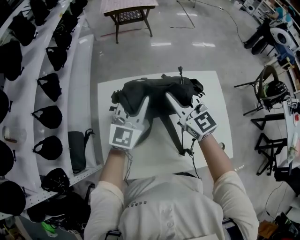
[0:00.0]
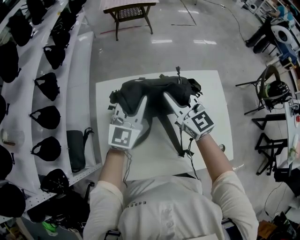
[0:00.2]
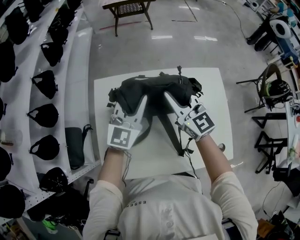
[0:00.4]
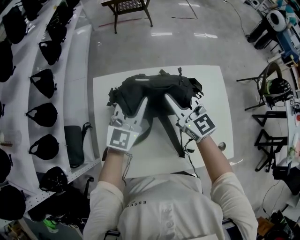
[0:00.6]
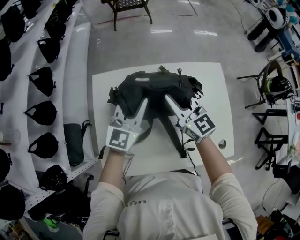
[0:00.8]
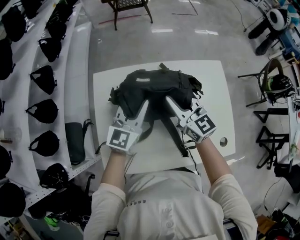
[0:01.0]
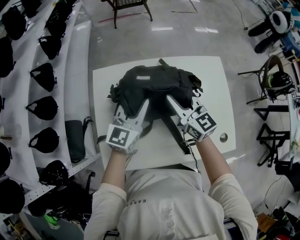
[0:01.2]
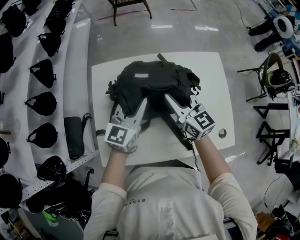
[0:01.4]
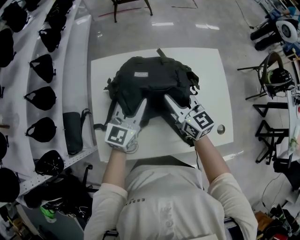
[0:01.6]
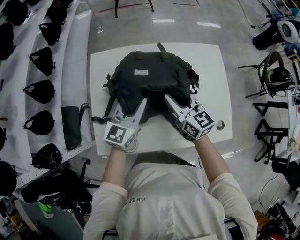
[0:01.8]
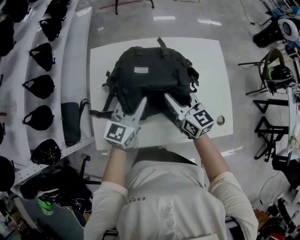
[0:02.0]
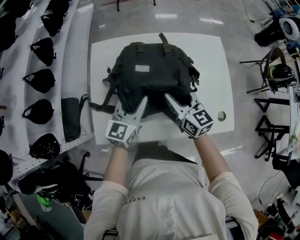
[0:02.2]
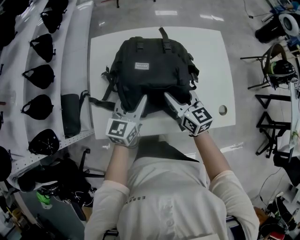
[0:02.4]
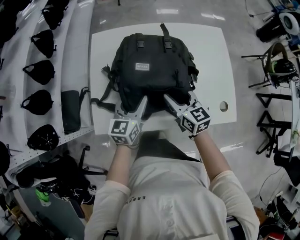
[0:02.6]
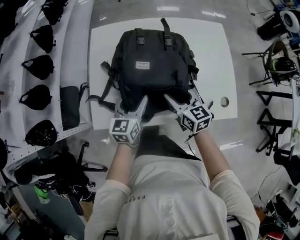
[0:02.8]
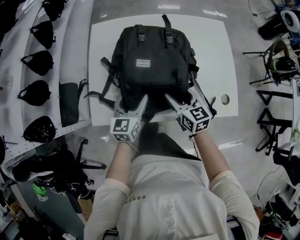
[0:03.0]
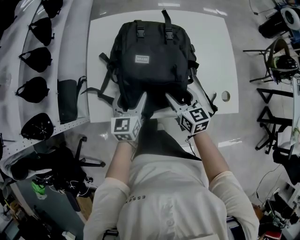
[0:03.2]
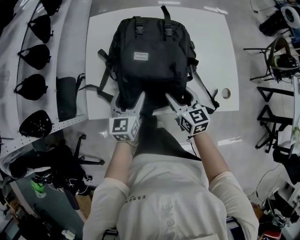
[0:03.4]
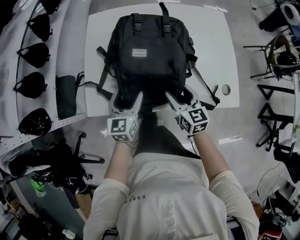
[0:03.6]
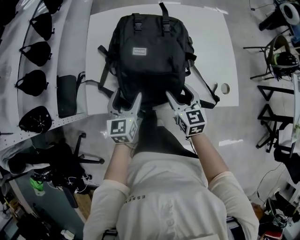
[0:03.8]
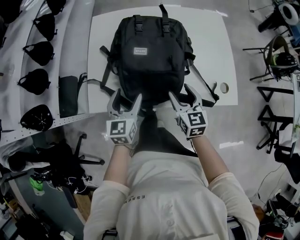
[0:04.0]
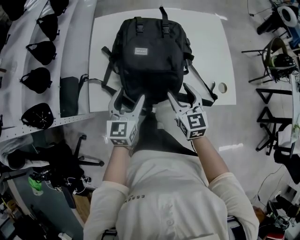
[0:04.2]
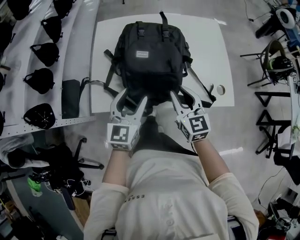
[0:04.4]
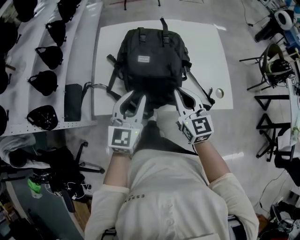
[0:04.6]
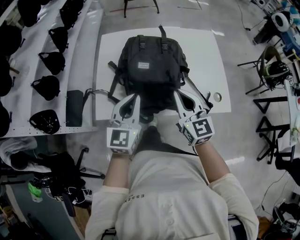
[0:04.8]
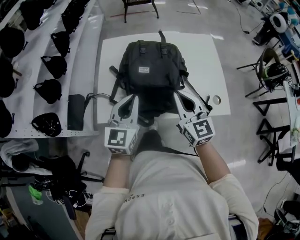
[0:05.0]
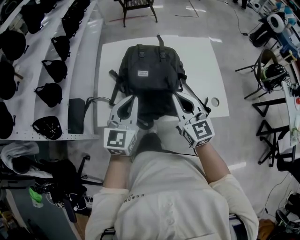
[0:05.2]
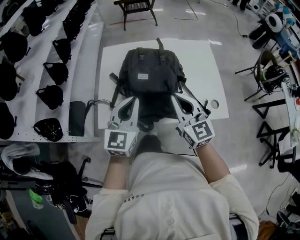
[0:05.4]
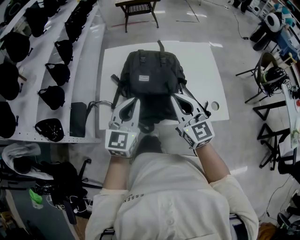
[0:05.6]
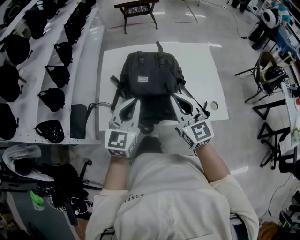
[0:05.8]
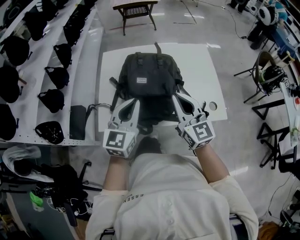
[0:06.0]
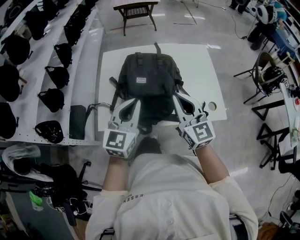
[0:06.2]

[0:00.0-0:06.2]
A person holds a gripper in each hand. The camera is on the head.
0:00.0 to 0:01.6: The grippers both shift downward and backward by approximately 10 cm.
0:01.6 to 0:03.2: Both grippers travel together backward and downward, about 20 cm. The right gripper opens its fingers. The left gripper changes its angle by some 20 degrees, and opens its fingers.
0:03.2 to 0:04.6: The two grippers go approximately 15 cm upward and backward. The left gripper closes up; the right gripper closes up.
0:04.6 to 0:06.2: Both grippers travel together upward, some 10 cm. The left gripper closes its fingers.

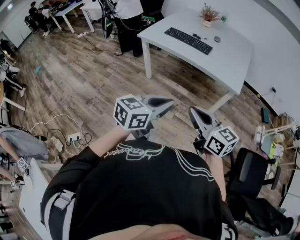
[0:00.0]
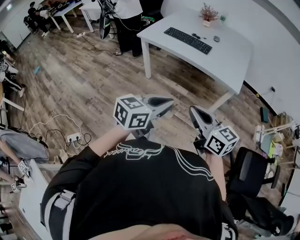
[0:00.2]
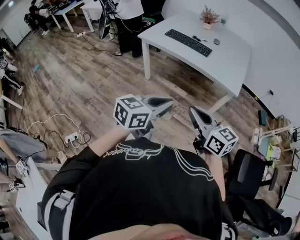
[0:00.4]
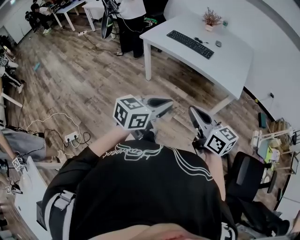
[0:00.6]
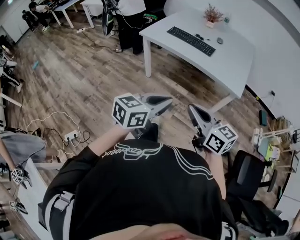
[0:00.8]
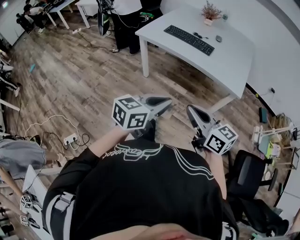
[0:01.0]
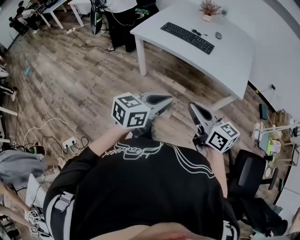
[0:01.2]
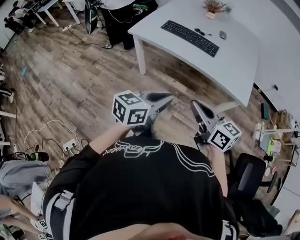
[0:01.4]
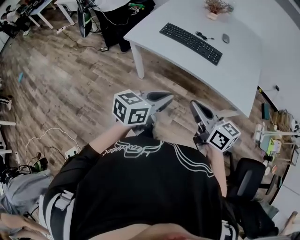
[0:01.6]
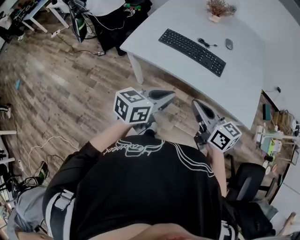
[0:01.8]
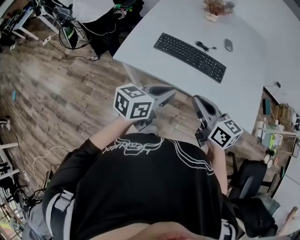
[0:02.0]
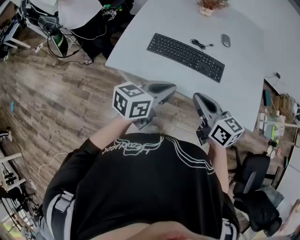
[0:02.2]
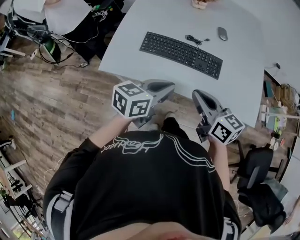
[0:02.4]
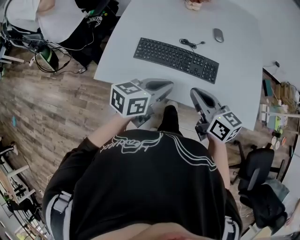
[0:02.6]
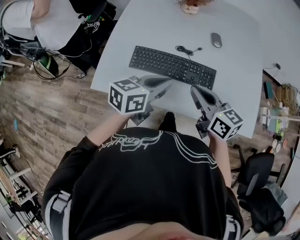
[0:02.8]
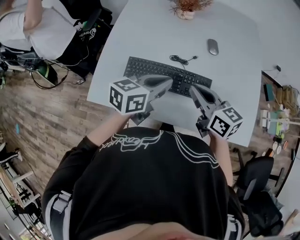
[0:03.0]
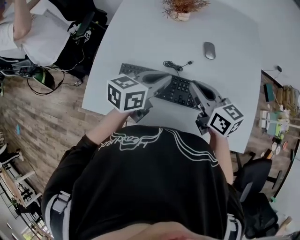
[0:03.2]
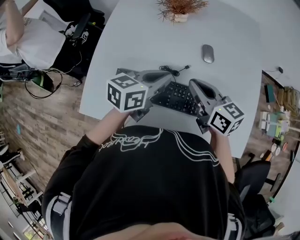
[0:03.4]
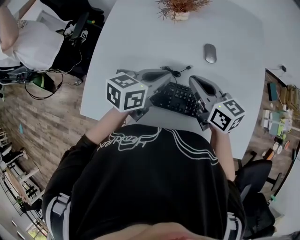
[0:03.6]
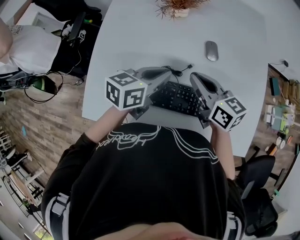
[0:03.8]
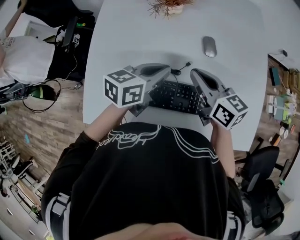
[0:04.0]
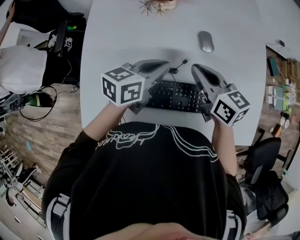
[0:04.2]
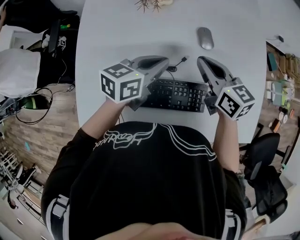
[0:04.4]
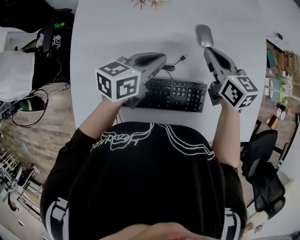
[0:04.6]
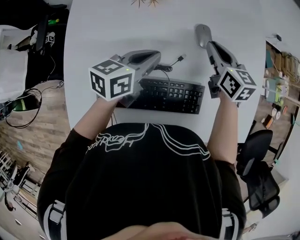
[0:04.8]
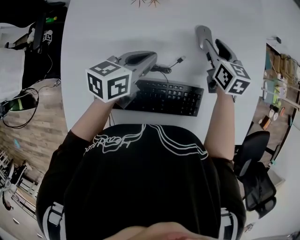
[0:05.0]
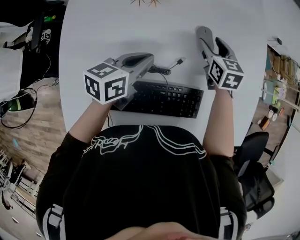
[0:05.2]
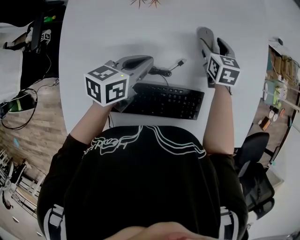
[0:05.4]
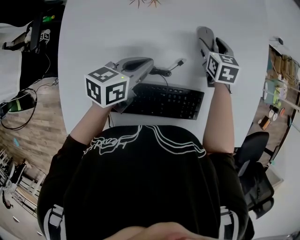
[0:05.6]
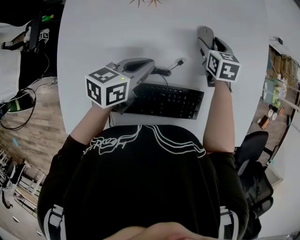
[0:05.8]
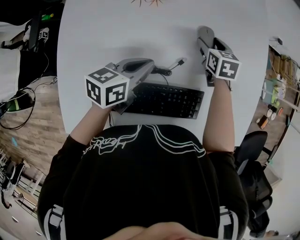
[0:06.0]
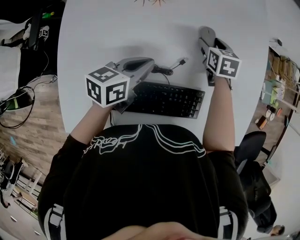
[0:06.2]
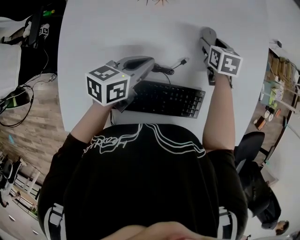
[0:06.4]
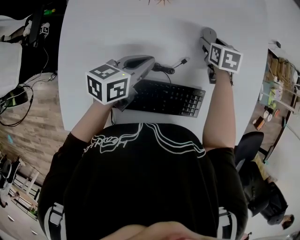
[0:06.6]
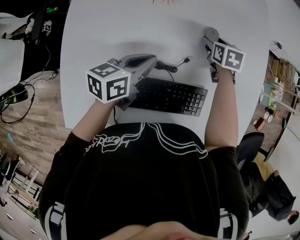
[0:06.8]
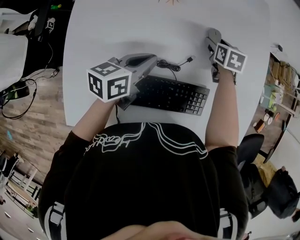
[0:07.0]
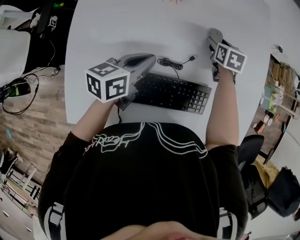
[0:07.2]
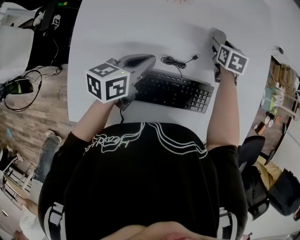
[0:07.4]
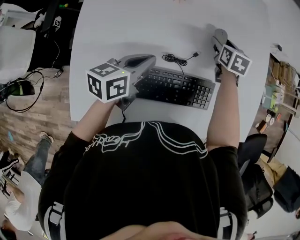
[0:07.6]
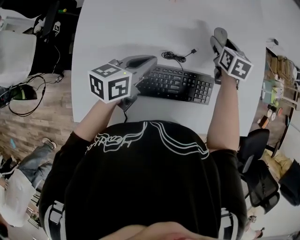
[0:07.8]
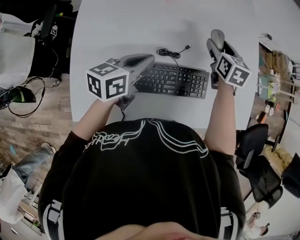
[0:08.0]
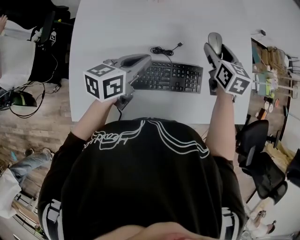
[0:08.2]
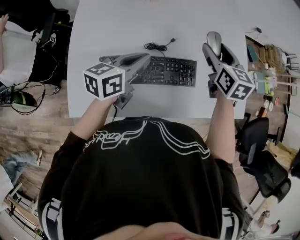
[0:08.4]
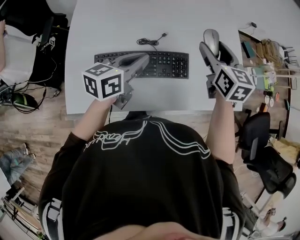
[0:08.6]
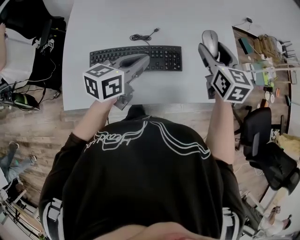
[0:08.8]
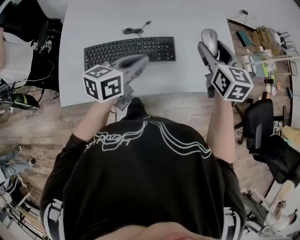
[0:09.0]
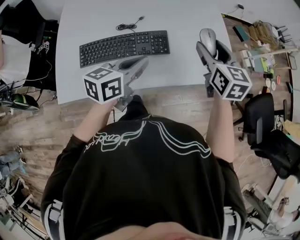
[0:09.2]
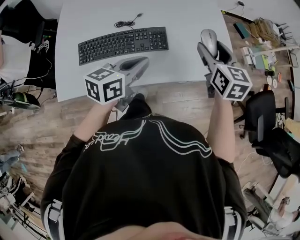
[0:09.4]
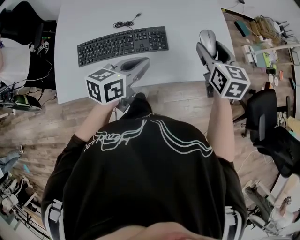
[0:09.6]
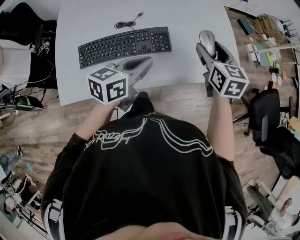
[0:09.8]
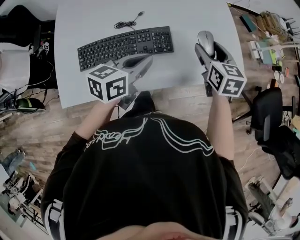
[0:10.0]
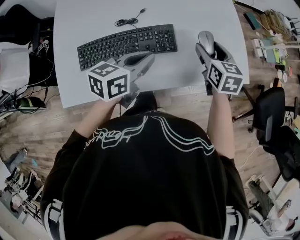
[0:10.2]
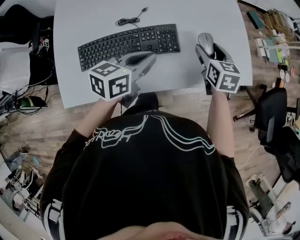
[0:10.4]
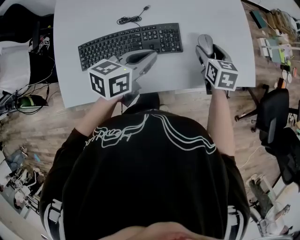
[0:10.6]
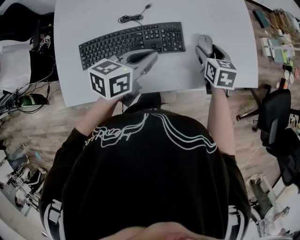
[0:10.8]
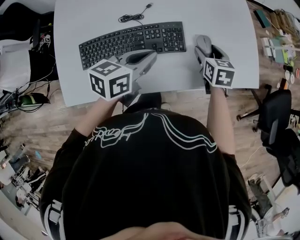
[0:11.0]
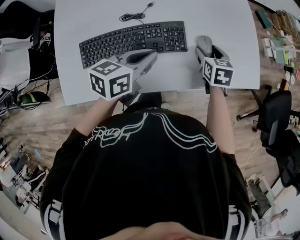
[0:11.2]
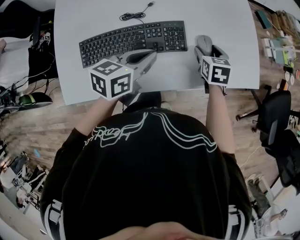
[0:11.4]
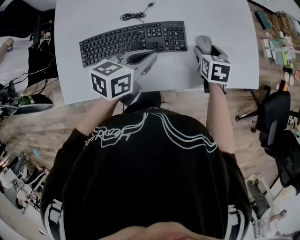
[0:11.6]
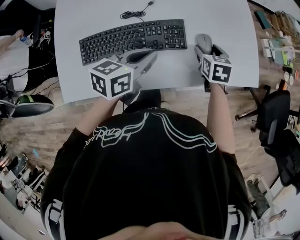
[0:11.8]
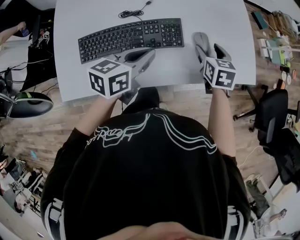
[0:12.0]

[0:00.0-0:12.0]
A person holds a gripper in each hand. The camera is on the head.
0:00.0 to 0:01.6: The two grippers go some 30 cm forward.
0:01.6 to 0:03.0: Both grippers are carried forward, approximately 40 cm.
0:03.0 to 0:04.4: Both grippers move forward, some 20 cm.
0:04.4 to 0:06.0: The right gripper heads downward and forward, covering roughly 20 cm, rotates about 30 degrees, and opens up; the left gripper travels downward by some 5 cm.
0:06.0 to 0:07.6: The left gripper travels backward by roughly 5 cm.
0:07.6 to 0:09.0: The left gripper heads to the right, backward and upward, covering some 25 cm, while the right gripper goes some 35 cm backward, to the right and upward, and turns by some 20 degrees.
0:09.0 to 0:10.4: The left gripper moves downward, about 5 cm. The right gripper is displaced downward by about 15 cm.

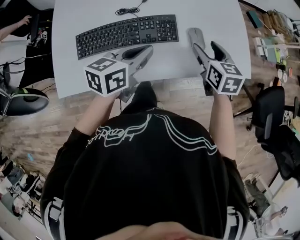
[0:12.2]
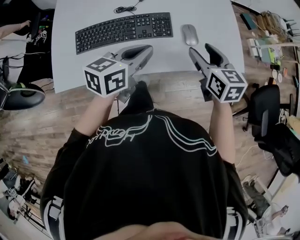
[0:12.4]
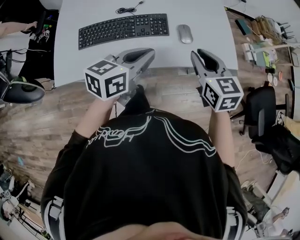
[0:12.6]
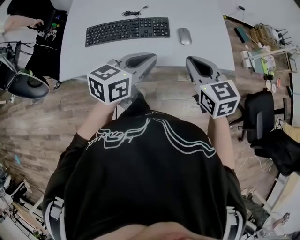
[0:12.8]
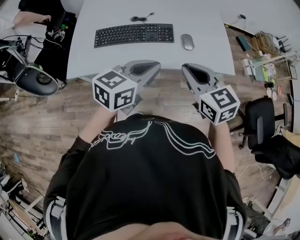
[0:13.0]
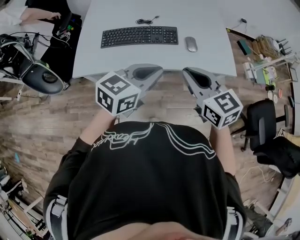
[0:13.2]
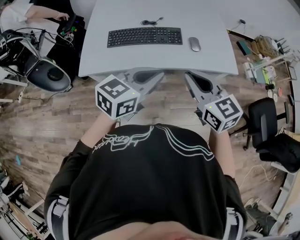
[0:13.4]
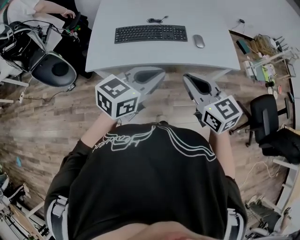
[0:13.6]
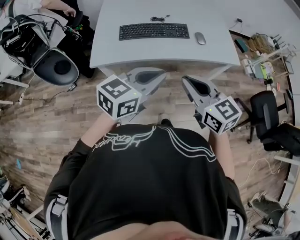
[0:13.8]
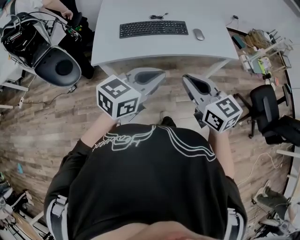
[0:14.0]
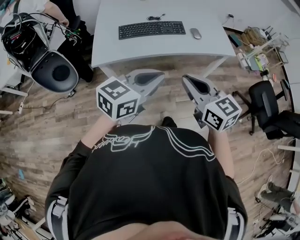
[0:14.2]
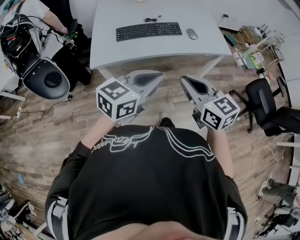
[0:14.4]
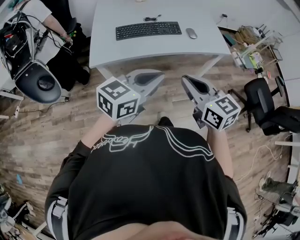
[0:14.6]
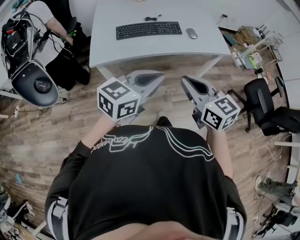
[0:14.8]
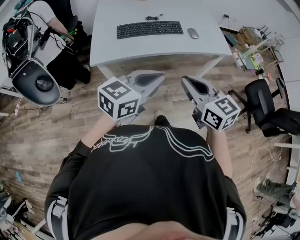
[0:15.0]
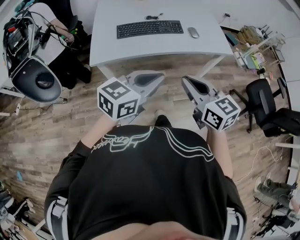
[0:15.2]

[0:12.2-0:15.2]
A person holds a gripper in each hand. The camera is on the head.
0:12.2 to 0:13.8: Both grippers travel together backward and upward, some 40 cm. The right gripper swivels roughly 30 degrees, and closes its fingers. The left gripper changes its angle by approximately 20 degrees.
0:13.8 to 0:15.2: The grippers both shift backward by roughly 5 cm.

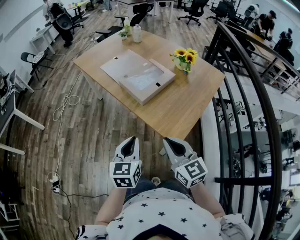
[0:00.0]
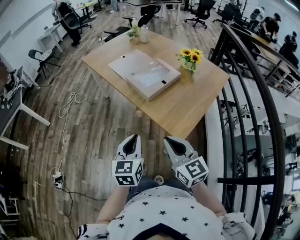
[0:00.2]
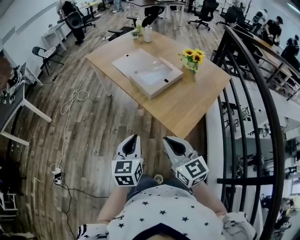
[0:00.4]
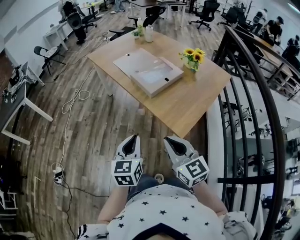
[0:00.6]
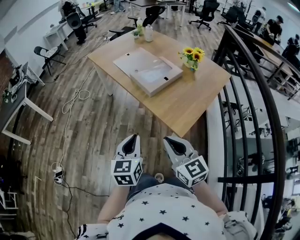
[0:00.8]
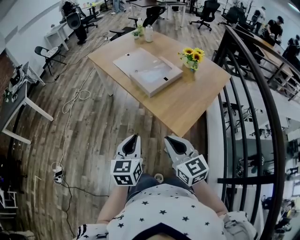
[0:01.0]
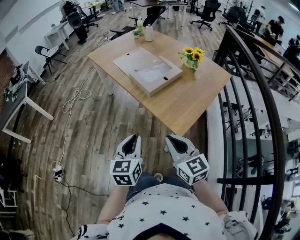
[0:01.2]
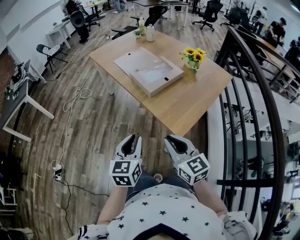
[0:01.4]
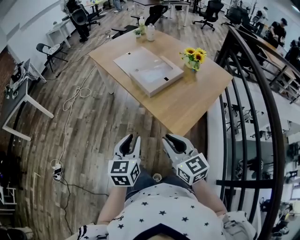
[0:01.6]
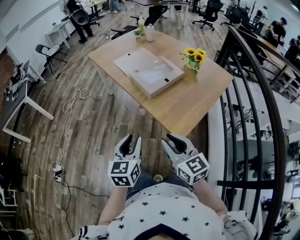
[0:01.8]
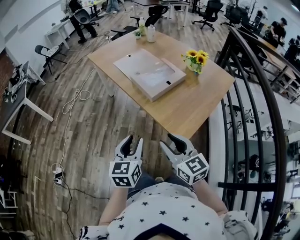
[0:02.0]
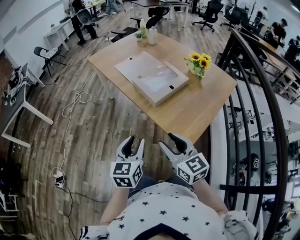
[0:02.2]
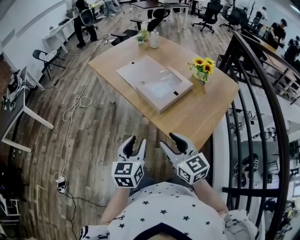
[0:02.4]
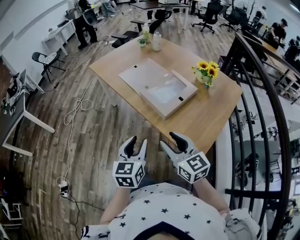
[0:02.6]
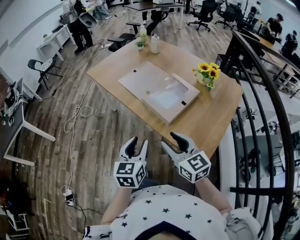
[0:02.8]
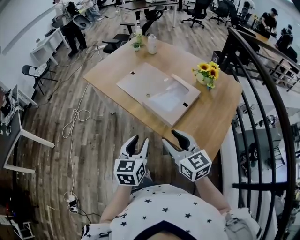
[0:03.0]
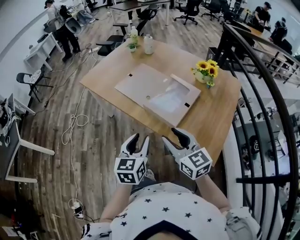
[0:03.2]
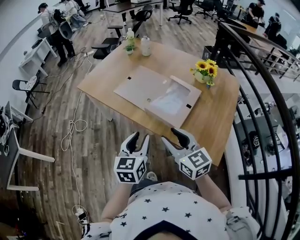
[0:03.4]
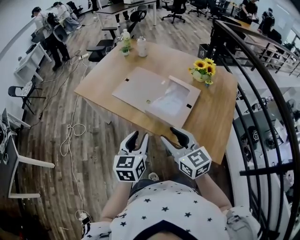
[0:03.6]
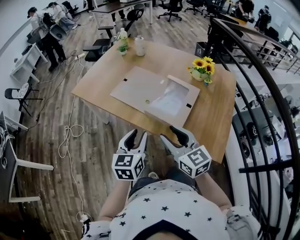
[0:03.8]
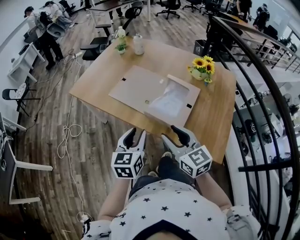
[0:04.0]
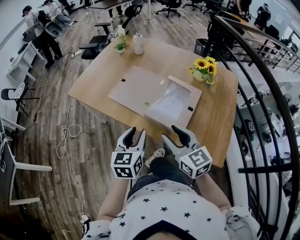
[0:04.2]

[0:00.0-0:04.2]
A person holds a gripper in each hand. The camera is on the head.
0:00.0 to 0:01.4: The grippers both shift backward by some 5 cm.
0:01.4 to 0:02.8: Both grippers travel together forward, about 20 cm. The right gripper opens.
0:02.8 to 0:04.2: The left gripper heads forward, covering some 20 cm. Meanwhile the right gripper heads forward and to the left, covering about 15 cm.
